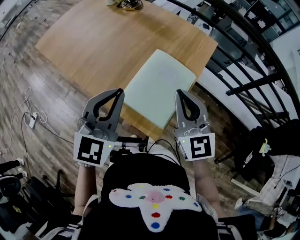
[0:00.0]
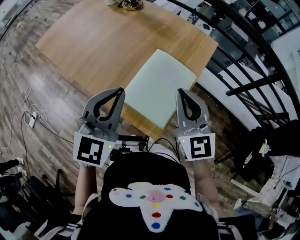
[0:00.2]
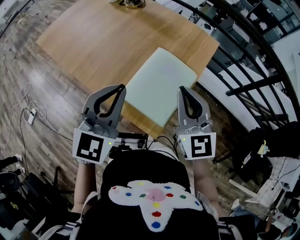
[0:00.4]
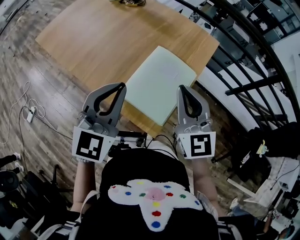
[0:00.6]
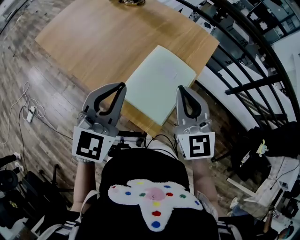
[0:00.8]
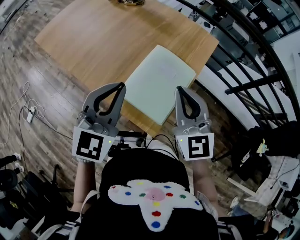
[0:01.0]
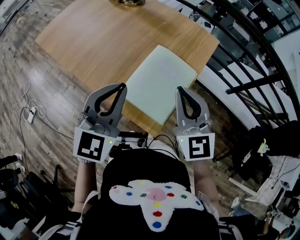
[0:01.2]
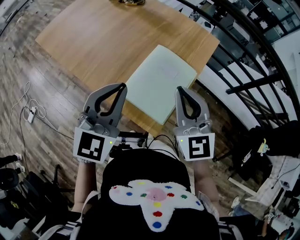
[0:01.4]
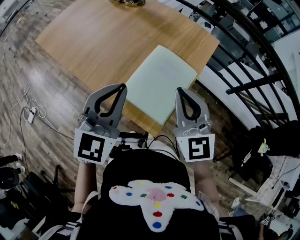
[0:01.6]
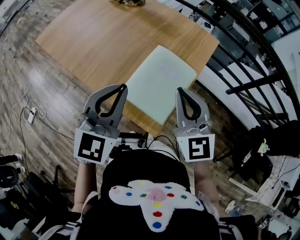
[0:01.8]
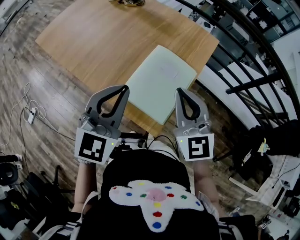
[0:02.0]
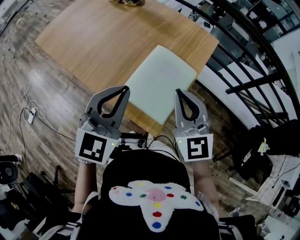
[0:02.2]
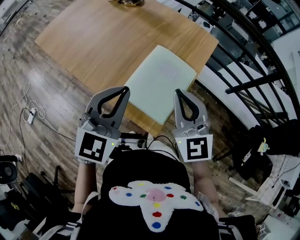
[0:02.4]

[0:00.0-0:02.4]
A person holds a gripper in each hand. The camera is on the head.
0:00.0 to 0:01.2: Both grippers stay about where they are.
0:01.2 to 0:02.4: There are only small adjustments of the grippers.

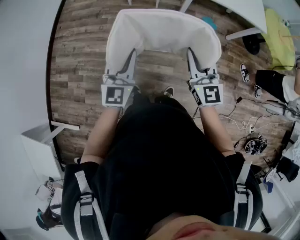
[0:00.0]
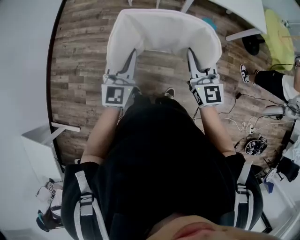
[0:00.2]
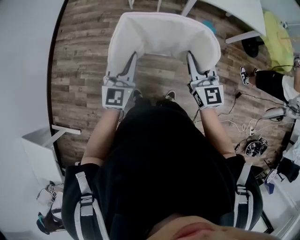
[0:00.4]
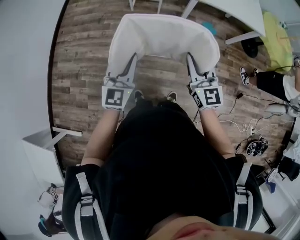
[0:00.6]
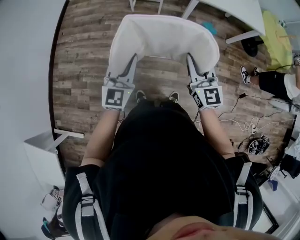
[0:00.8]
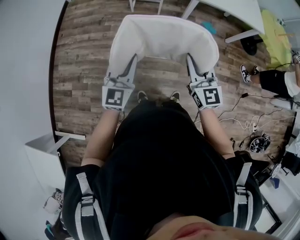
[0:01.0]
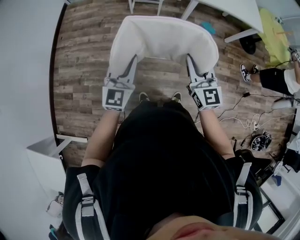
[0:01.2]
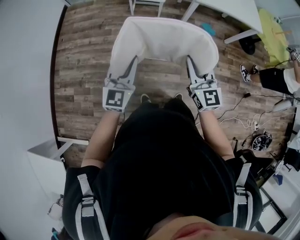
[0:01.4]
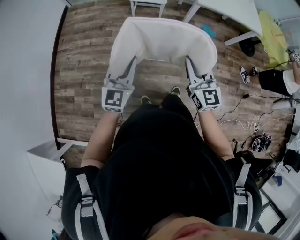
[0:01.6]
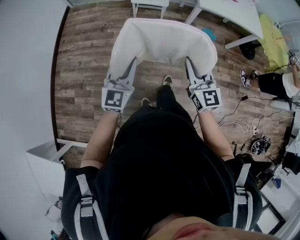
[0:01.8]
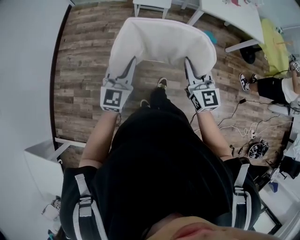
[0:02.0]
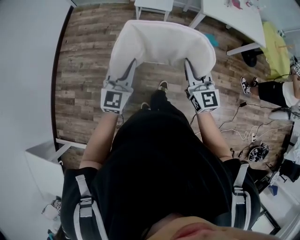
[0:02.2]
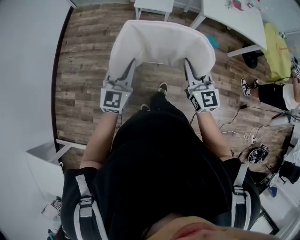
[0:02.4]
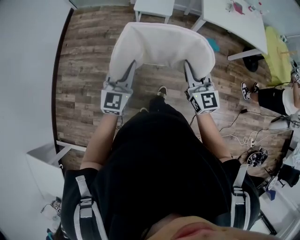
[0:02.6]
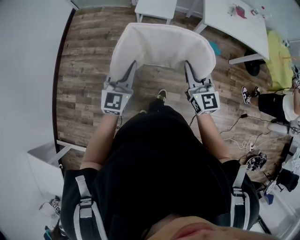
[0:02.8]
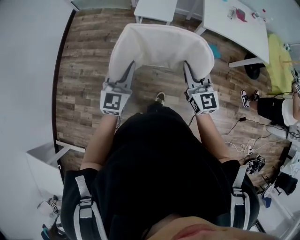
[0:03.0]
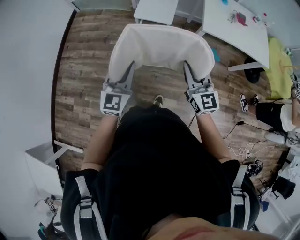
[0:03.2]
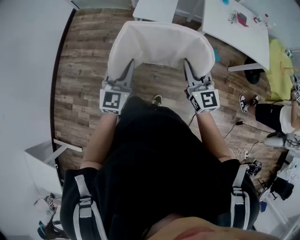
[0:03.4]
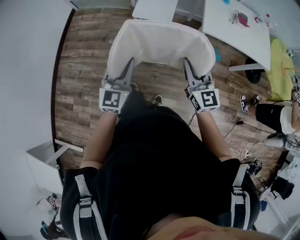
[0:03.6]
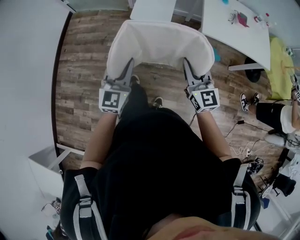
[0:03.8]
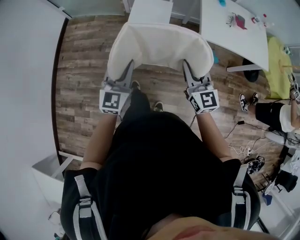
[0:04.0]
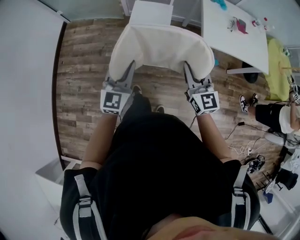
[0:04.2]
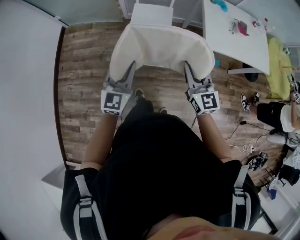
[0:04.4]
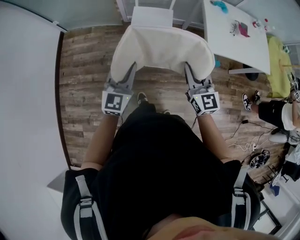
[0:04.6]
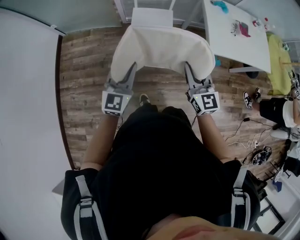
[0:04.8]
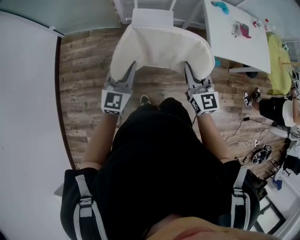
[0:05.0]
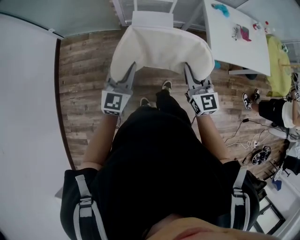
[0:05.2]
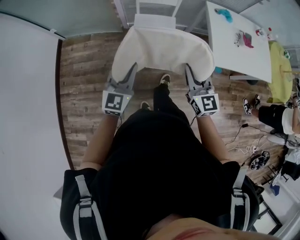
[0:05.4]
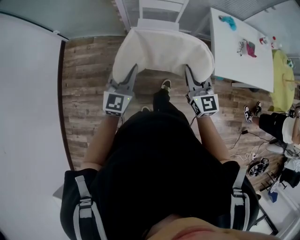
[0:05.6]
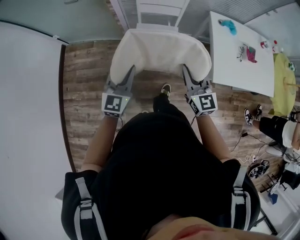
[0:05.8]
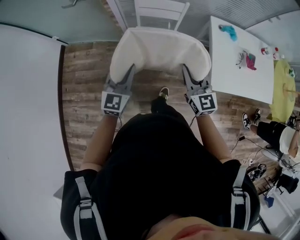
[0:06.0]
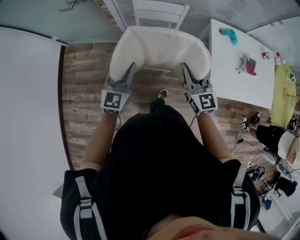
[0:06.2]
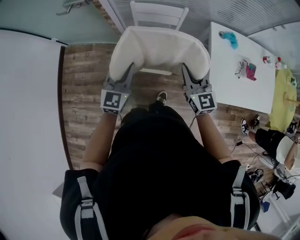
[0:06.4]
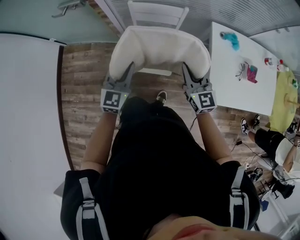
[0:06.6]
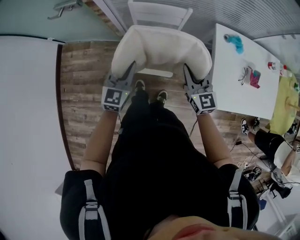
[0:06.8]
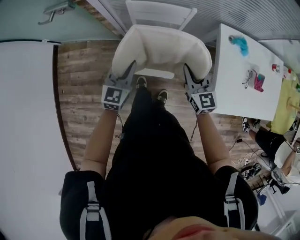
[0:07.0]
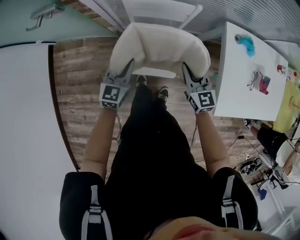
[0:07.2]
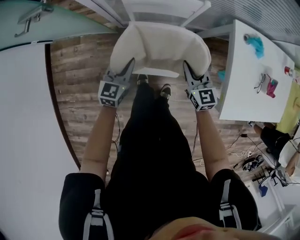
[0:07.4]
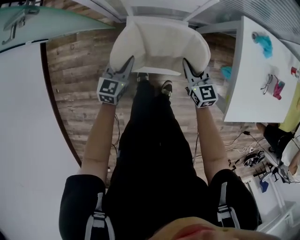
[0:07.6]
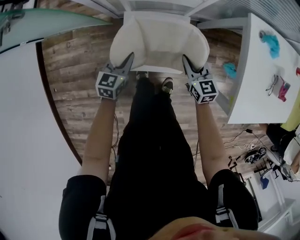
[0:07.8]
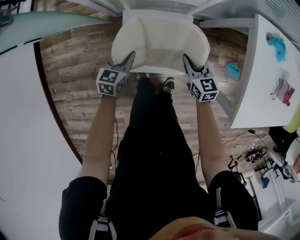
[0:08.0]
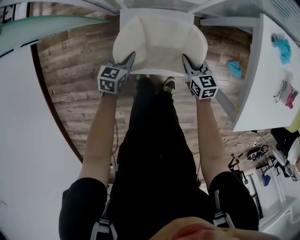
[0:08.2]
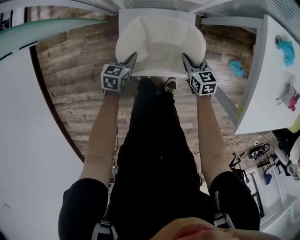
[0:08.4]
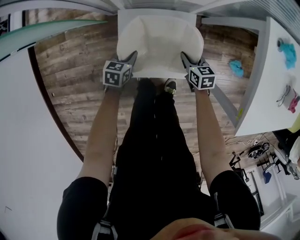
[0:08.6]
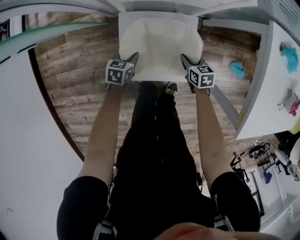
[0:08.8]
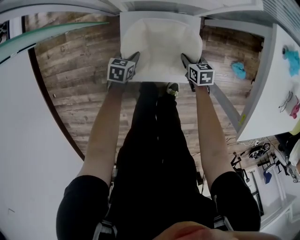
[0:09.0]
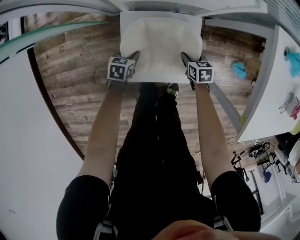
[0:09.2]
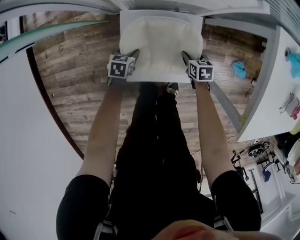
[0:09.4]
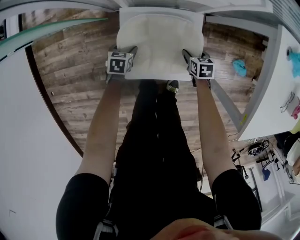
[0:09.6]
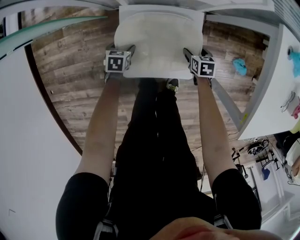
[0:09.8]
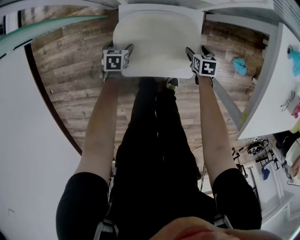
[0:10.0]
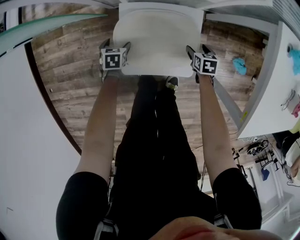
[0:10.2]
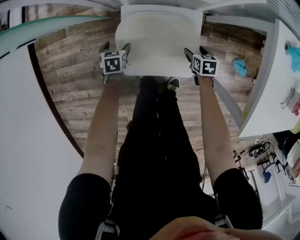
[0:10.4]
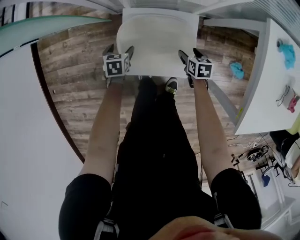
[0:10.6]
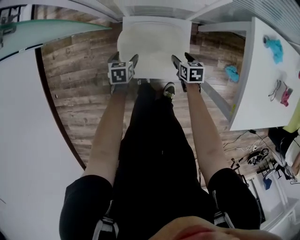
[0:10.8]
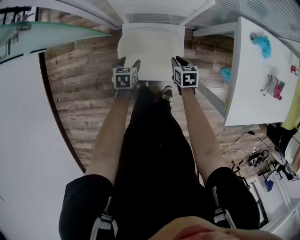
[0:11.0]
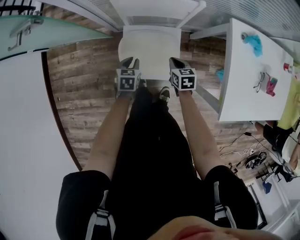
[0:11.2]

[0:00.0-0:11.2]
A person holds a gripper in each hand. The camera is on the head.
0:00.0 to 0:01.6: The two grippers go approximately 15 cm to the left.
0:01.6 to 0:03.2: Both grippers travel together forward, some 20 cm.
0:03.2 to 0:04.8: Both grippers move forward, some 30 cm.
0:04.8 to 0:06.4: The grippers both shift forward by some 30 cm.
0:06.4 to 0:08.0: The right gripper is displaced downward by some 40 cm, and changes its angle by about 30 degrees. Meanwhile the left gripper goes some 50 cm downward and forward, and changes its angle by approximately 30 degrees.
0:08.0 to 0:09.6: The grippers both shift downward by roughly 20 cm. The left gripper rotates approximately 30 degrees, and opens; the right gripper angles its fingers downward, by about 30 degrees, and opens its fingers.
0:09.6 to 0:11.2: Both grippers travel together upward, some 25 cm. The left gripper closes up, while the right gripper closes its fingers.

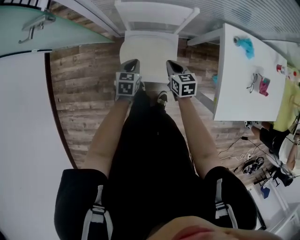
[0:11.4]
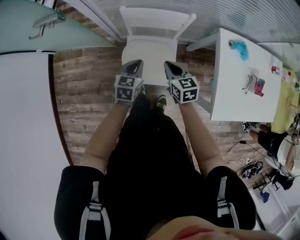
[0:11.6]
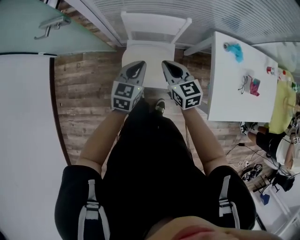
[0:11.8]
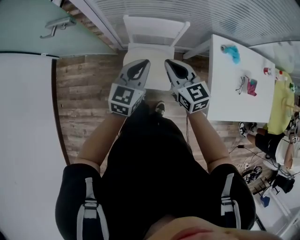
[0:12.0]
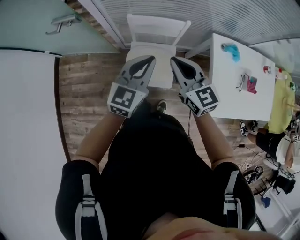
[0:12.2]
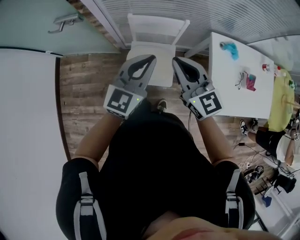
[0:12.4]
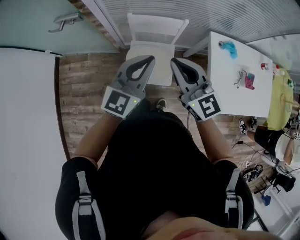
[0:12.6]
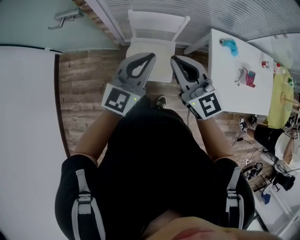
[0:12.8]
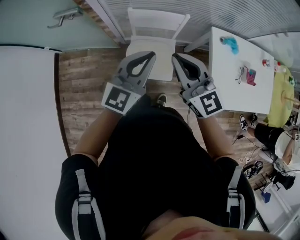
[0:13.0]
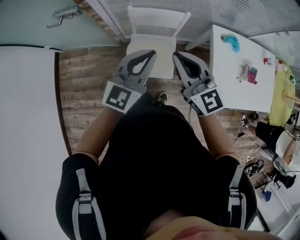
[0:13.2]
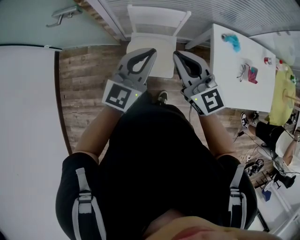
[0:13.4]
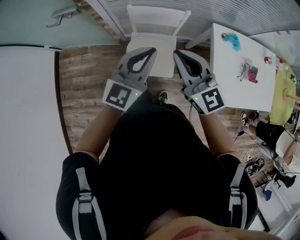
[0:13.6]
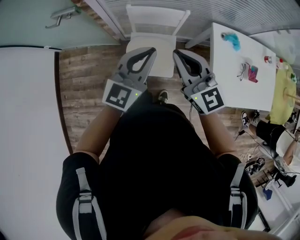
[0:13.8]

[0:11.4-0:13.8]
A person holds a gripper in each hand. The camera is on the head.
0:11.4 to 0:12.6: The grippers both shift upward by approximately 40 cm. The left gripper angles its fingers upward, by about 40 degrees, while the right gripper tilts its fingers approximately 40 degrees upward.
0:12.6 to 0:13.8: The two grippers keep their place.

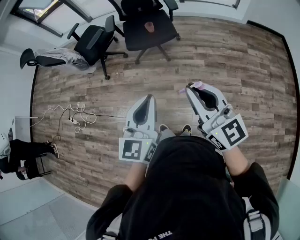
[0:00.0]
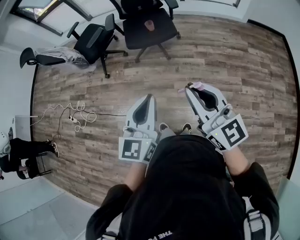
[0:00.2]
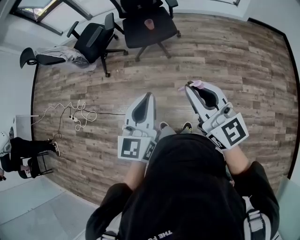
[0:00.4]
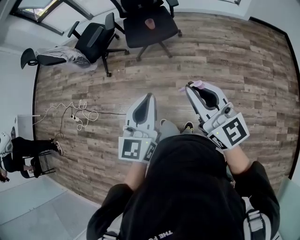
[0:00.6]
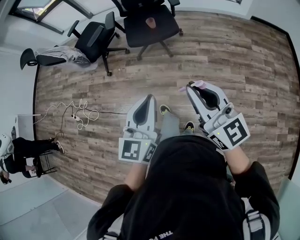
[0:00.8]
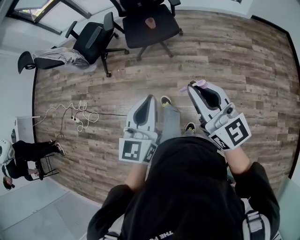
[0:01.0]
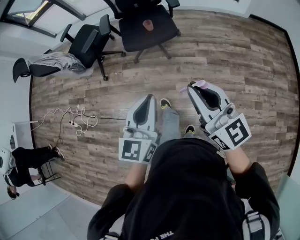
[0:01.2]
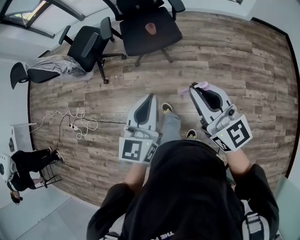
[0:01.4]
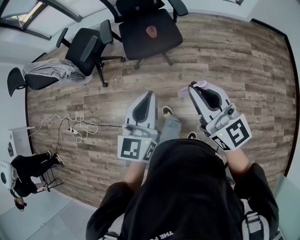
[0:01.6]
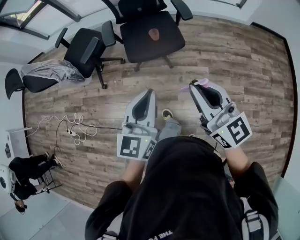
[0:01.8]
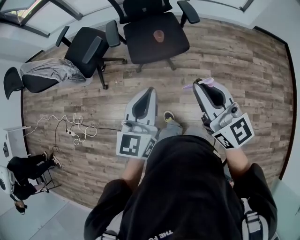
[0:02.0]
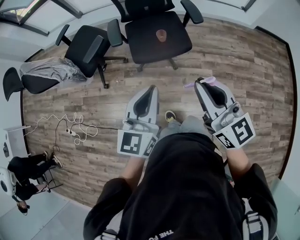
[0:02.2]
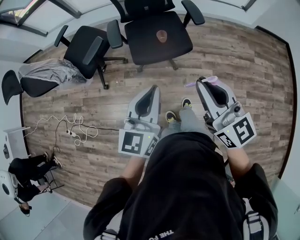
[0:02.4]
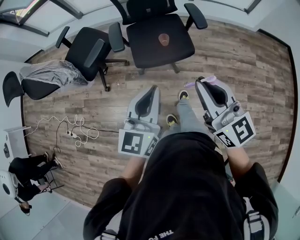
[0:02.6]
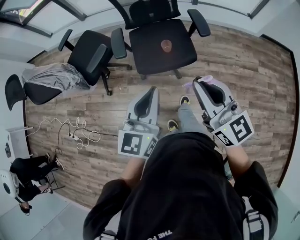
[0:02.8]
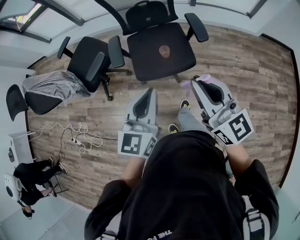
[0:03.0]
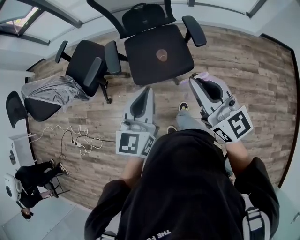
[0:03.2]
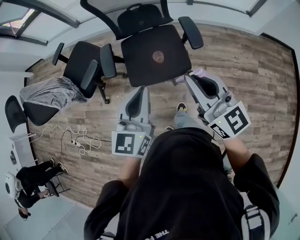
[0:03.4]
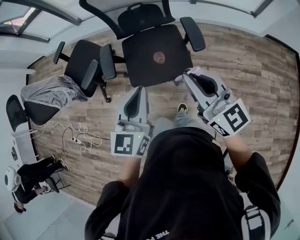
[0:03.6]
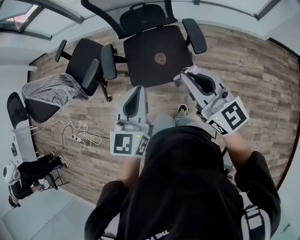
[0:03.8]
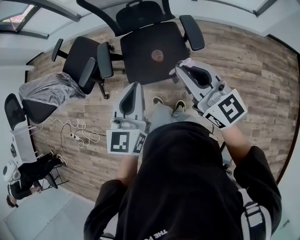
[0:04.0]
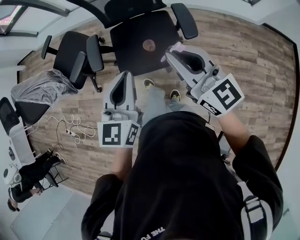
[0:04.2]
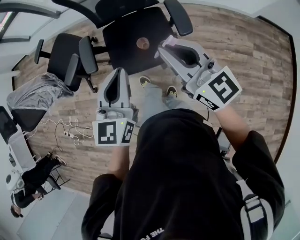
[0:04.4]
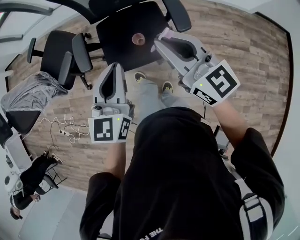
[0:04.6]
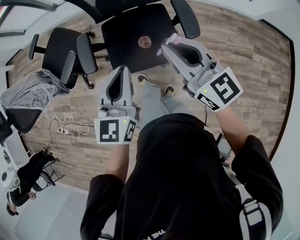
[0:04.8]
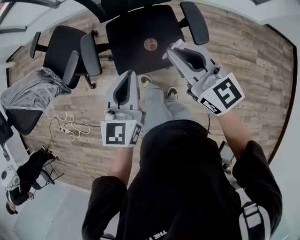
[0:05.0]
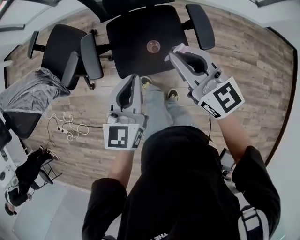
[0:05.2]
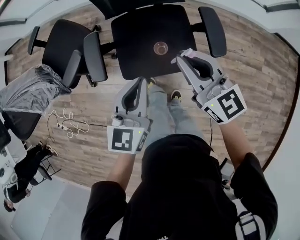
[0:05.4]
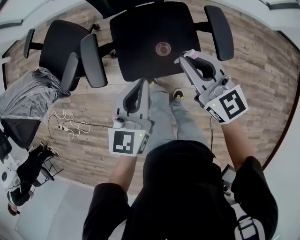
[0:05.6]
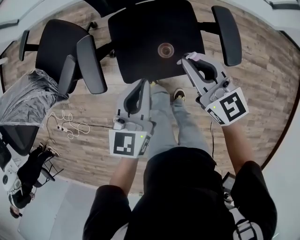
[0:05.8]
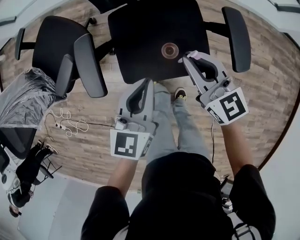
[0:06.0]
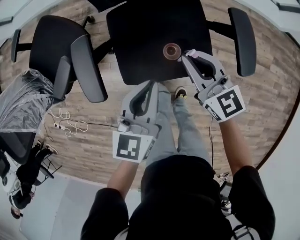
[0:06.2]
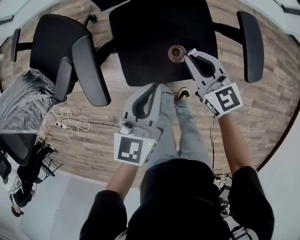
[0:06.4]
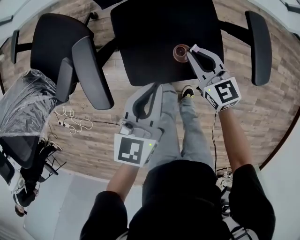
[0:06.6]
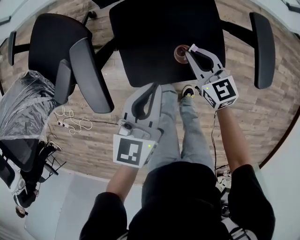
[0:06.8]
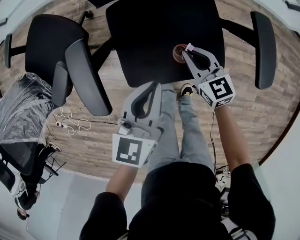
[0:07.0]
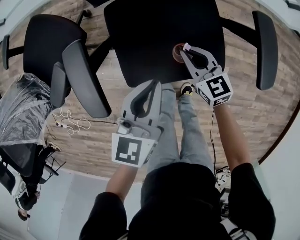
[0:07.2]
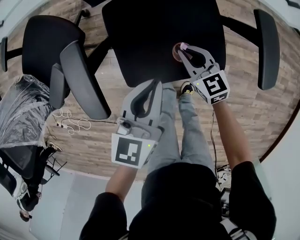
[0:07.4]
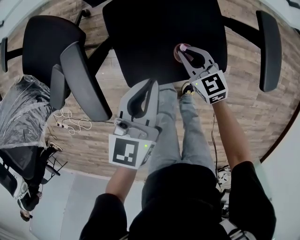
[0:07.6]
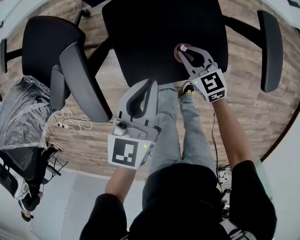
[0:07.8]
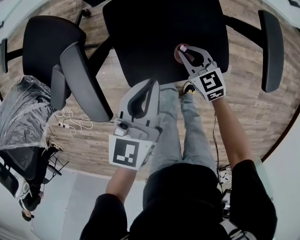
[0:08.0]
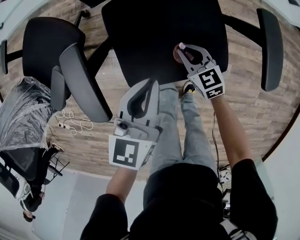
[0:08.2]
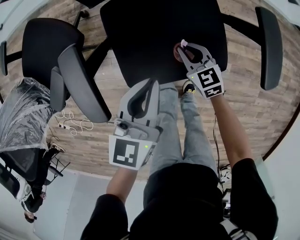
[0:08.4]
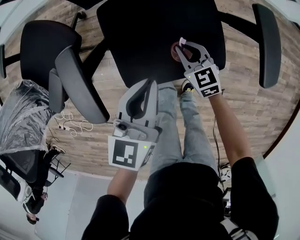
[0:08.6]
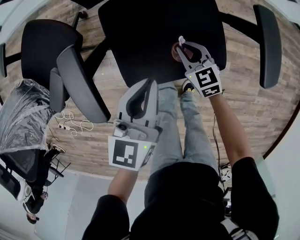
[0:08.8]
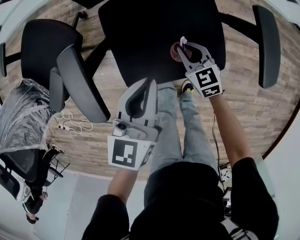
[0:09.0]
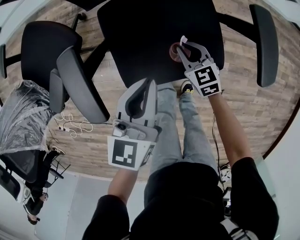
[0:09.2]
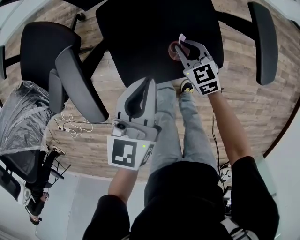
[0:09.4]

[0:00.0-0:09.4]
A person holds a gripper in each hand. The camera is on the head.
0:00.0 to 0:01.6: Both grippers travel together forward, about 25 cm.
0:01.6 to 0:03.2: The two grippers go approximately 30 cm forward.
0:03.2 to 0:04.8: Both grippers move forward and downward, about 20 cm.
0:04.8 to 0:06.2: Both grippers move downward and forward, some 30 cm.
0:06.2 to 0:07.8: The left gripper shifts roughly 10 cm downward. The right gripper heads downward, covering approximately 20 cm.
0:07.8 to 0:09.4: The grippers make only small movements.
